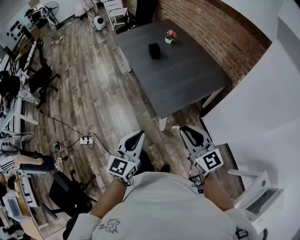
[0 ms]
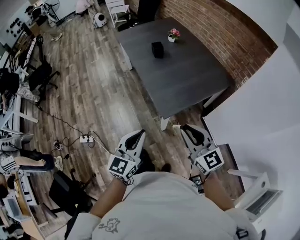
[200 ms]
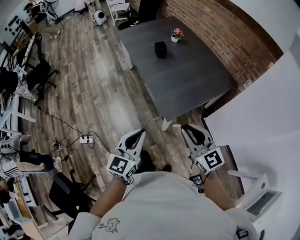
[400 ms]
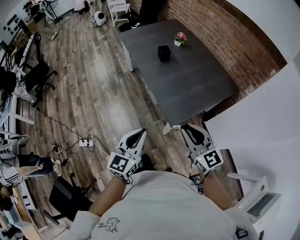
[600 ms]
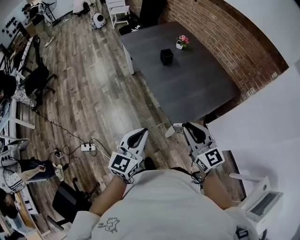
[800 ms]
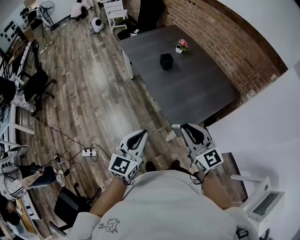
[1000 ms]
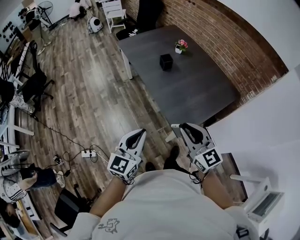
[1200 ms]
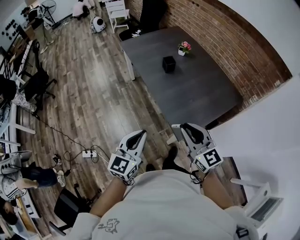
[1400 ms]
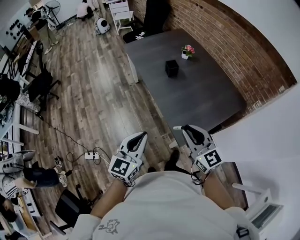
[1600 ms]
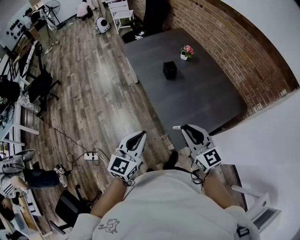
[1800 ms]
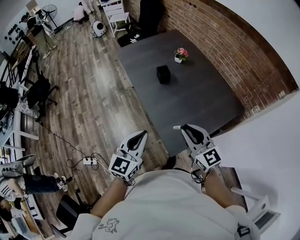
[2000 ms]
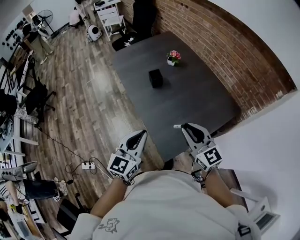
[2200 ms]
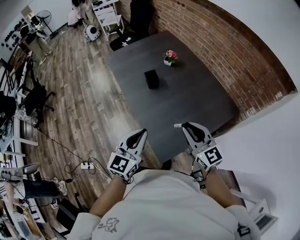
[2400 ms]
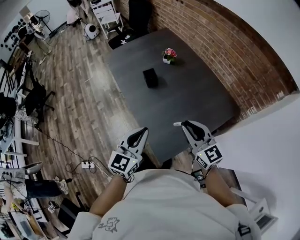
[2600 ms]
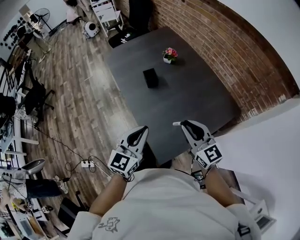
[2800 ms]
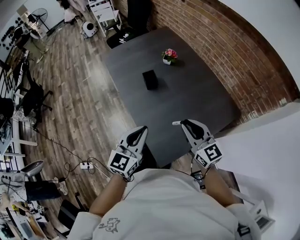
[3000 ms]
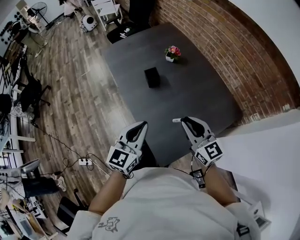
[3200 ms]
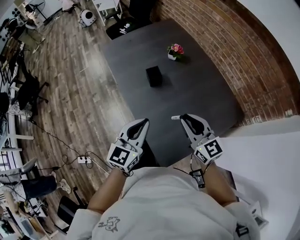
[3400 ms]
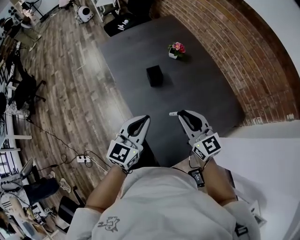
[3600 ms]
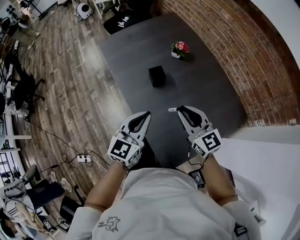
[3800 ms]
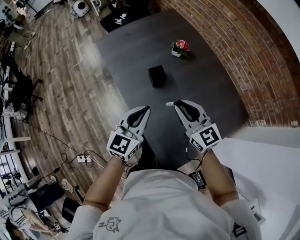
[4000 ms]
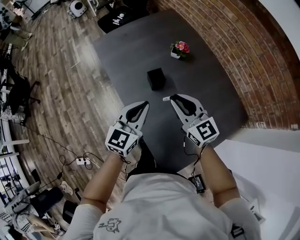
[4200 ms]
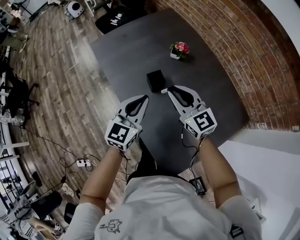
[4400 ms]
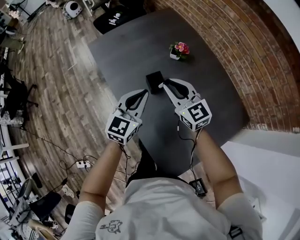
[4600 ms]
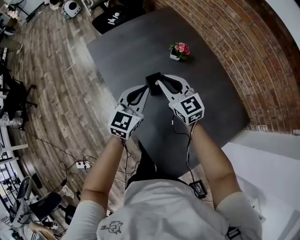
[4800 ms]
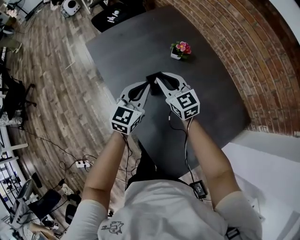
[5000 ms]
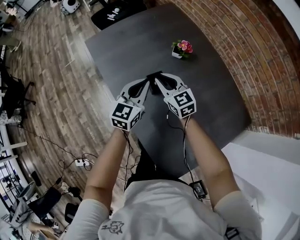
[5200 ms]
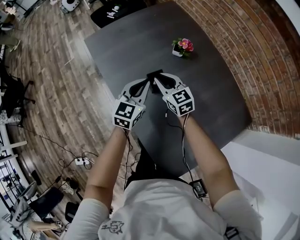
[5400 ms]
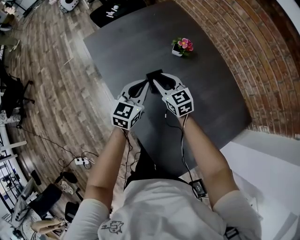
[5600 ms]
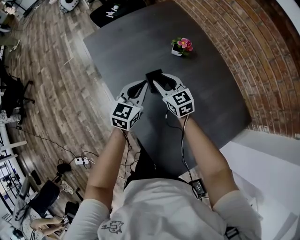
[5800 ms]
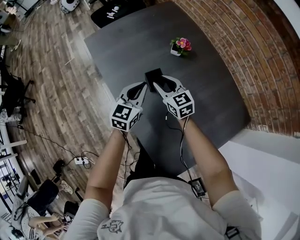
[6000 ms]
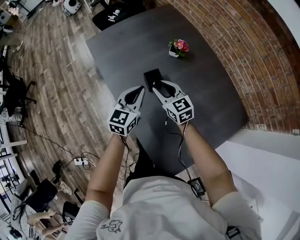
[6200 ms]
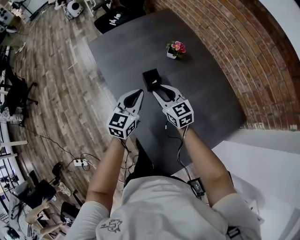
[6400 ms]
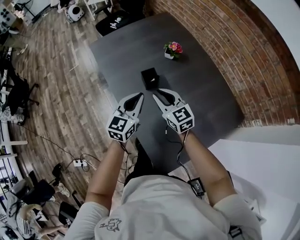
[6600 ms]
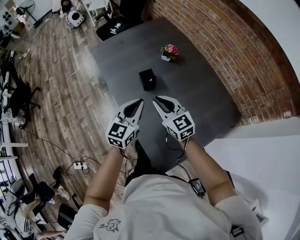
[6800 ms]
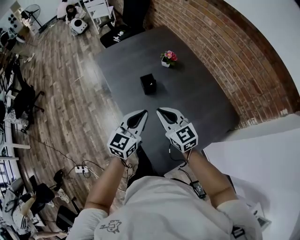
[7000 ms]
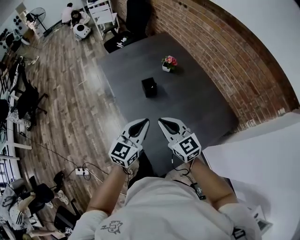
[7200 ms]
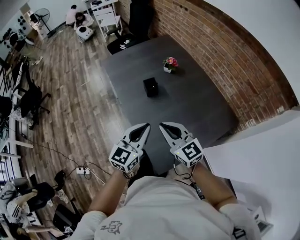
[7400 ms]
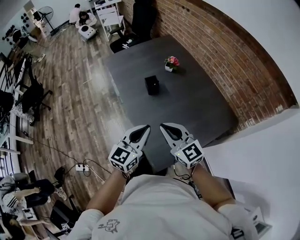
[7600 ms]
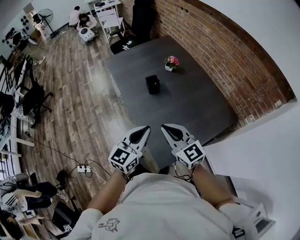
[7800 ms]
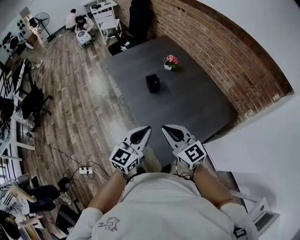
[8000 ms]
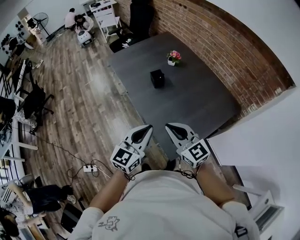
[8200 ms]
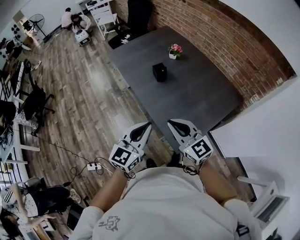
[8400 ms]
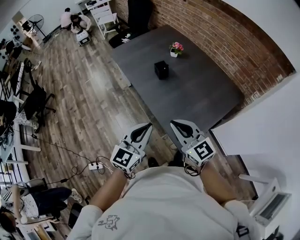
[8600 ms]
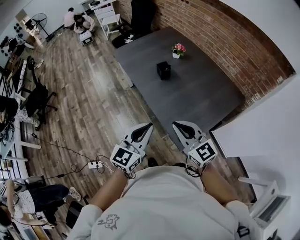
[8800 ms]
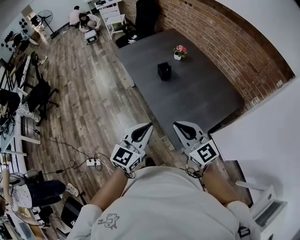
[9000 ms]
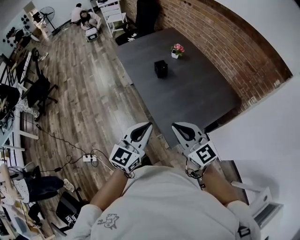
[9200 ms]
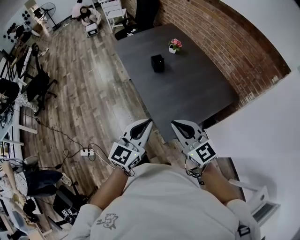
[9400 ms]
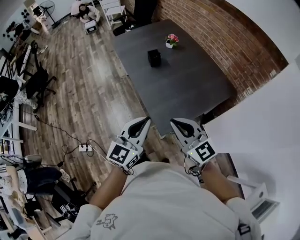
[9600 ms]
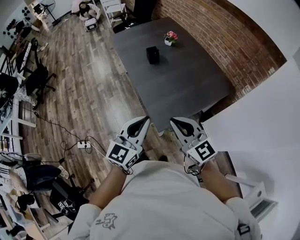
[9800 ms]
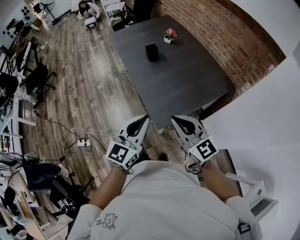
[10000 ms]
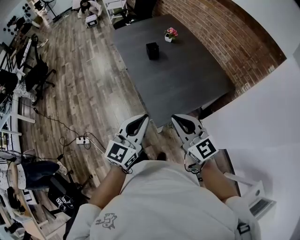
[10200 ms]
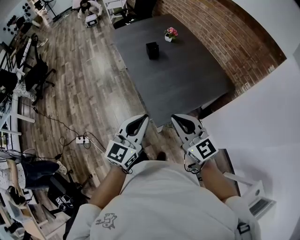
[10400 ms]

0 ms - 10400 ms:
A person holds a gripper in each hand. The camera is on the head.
0 ms - 1400 ms: The two grippers go roughly 25 cm forward and to the left.
1400 ms - 3000 ms: Both grippers travel together forward and to the right, about 30 cm.
3000 ms - 4400 ms: The left gripper heads forward, covering roughly 25 cm; the right gripper shifts some 30 cm forward and to the left.
4400 ms - 6000 ms: The grippers both shift downward and forward by some 15 cm.
6000 ms - 7400 ms: The two grippers go roughly 35 cm backward and upward. The right gripper closes its fingers.
7400 ms - 9000 ms: The left gripper shifts approximately 20 cm backward and to the left; the right gripper travels backward by about 20 cm.
9000 ms - 10400 ms: The grippers both shift backward and to the right by roughly 15 cm.

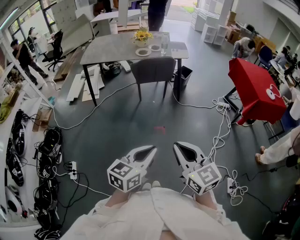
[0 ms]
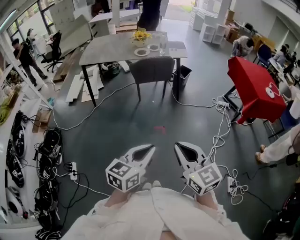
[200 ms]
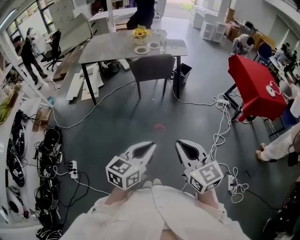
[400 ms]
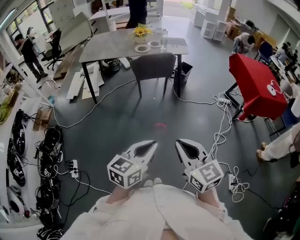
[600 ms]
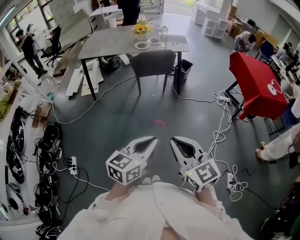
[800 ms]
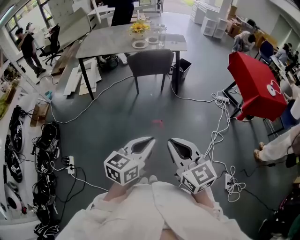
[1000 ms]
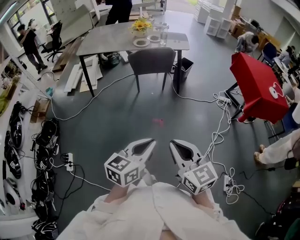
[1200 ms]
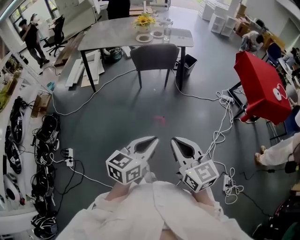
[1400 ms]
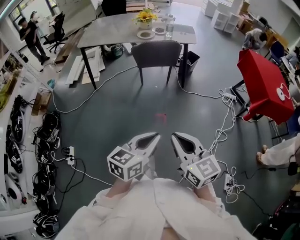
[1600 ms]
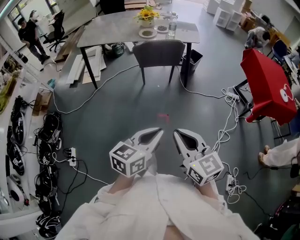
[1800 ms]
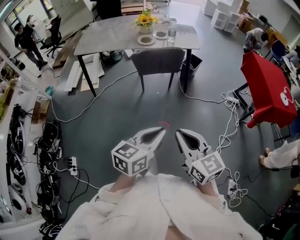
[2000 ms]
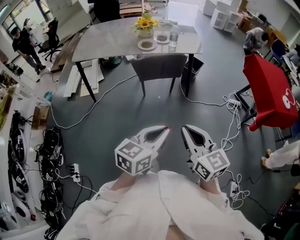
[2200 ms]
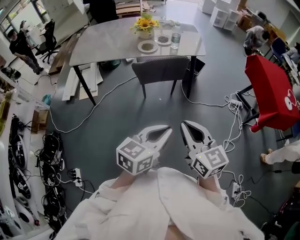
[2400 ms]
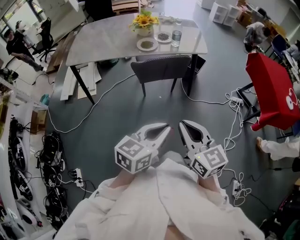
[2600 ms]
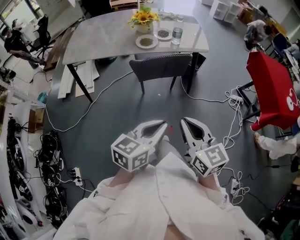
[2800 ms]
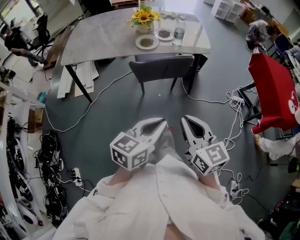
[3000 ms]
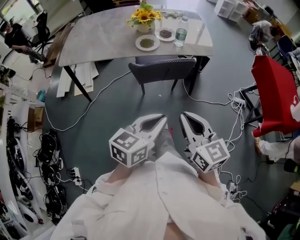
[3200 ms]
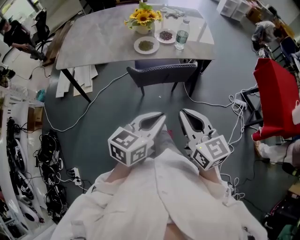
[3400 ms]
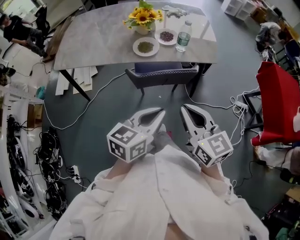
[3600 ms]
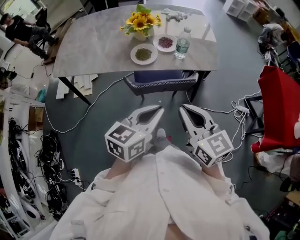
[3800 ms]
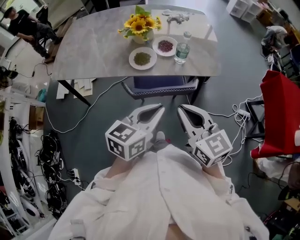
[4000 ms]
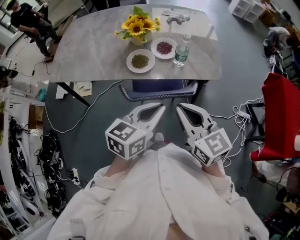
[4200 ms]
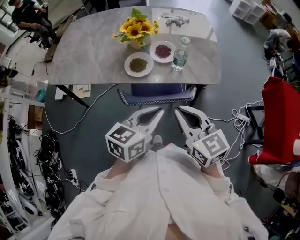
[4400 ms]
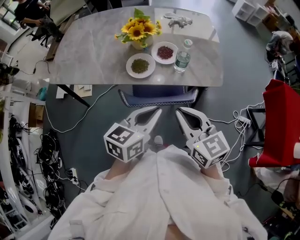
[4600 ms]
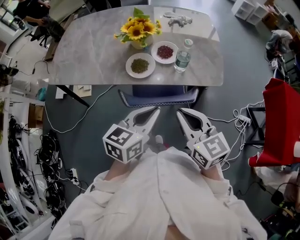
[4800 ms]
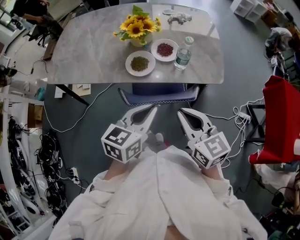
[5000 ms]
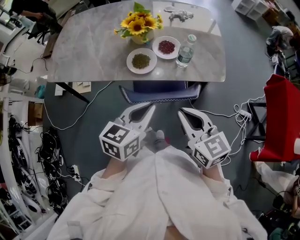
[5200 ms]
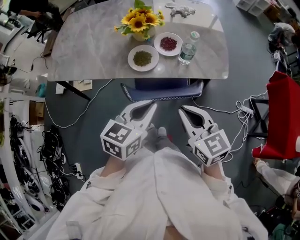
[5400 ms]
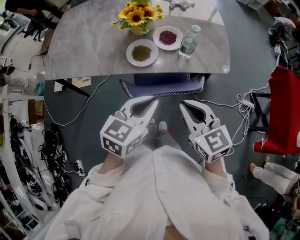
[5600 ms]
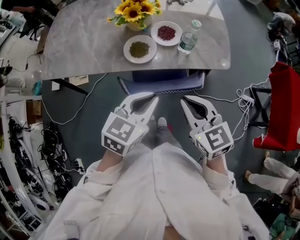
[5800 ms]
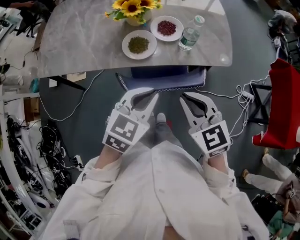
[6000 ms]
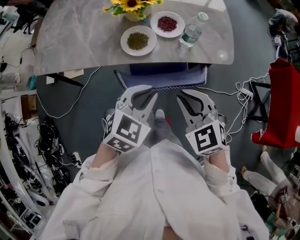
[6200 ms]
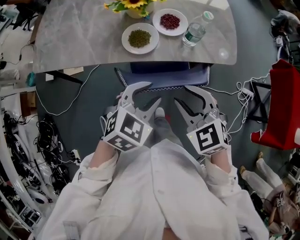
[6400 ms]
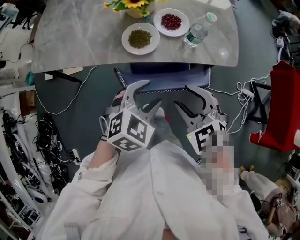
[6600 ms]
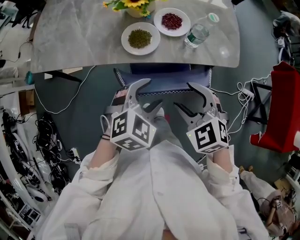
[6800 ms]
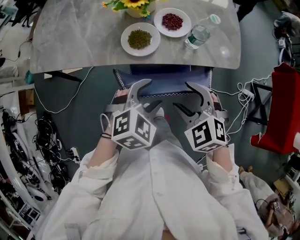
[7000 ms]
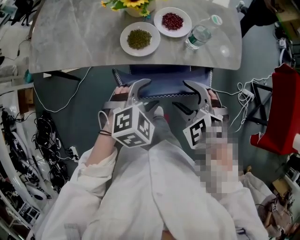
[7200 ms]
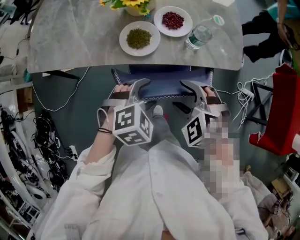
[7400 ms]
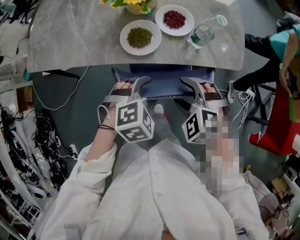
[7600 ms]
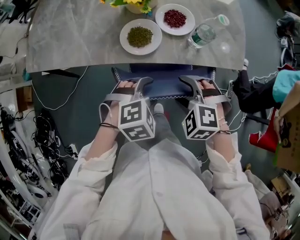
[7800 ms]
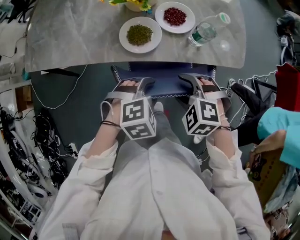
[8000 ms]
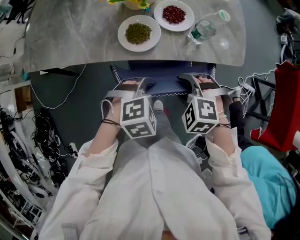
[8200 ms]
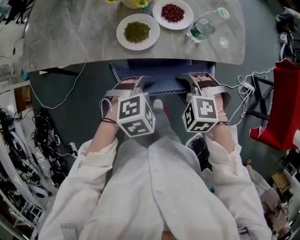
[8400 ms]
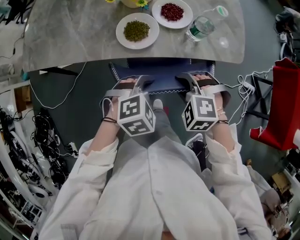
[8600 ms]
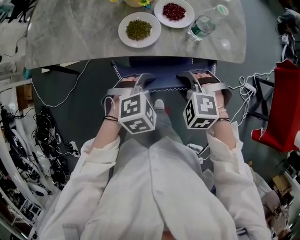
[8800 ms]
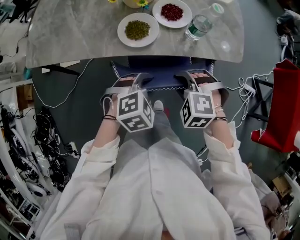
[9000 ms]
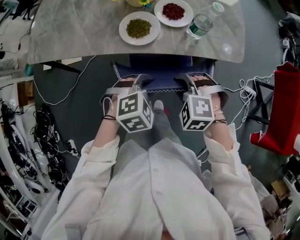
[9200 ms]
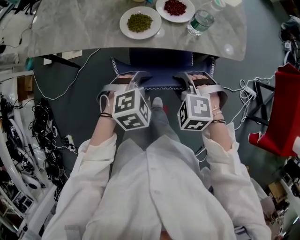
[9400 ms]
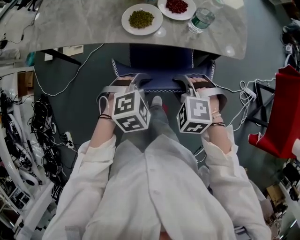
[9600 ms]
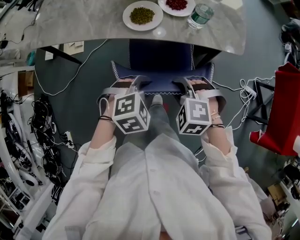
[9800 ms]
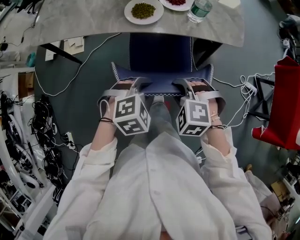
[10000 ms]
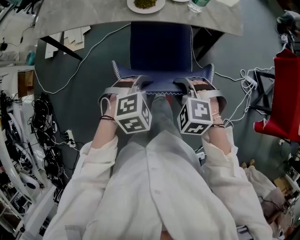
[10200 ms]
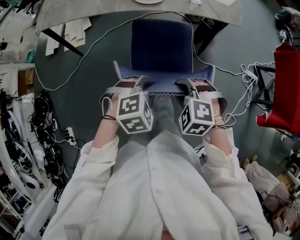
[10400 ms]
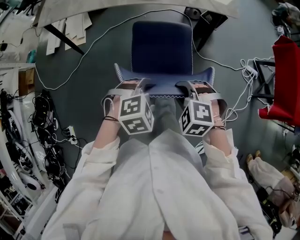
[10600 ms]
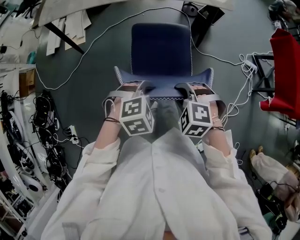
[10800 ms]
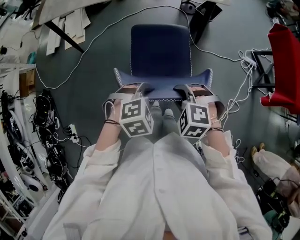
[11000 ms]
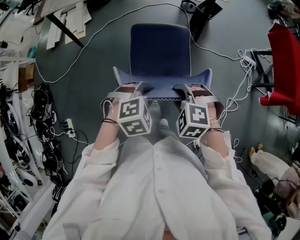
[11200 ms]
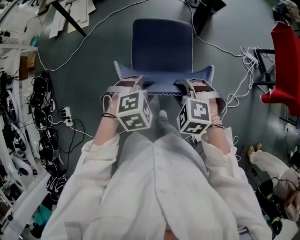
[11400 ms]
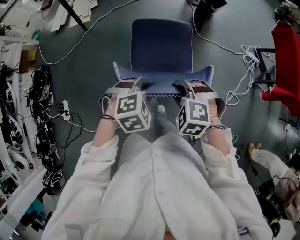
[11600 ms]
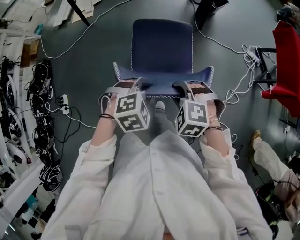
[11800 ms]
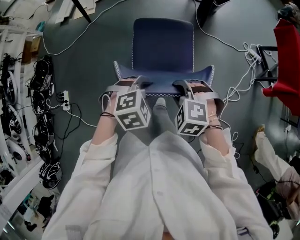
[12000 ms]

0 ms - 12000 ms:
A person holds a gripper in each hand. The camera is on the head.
0 ms - 1600 ms: The grippers both shift forward by approximately 10 cm.
1600 ms - 3000 ms: The grippers both shift forward by some 35 cm.
3000 ms - 4400 ms: Both grippers travel together forward, approximately 35 cm.
4400 ms - 6000 ms: The right gripper moves downward, some 5 cm; the left gripper is displaced to the left by roughly 5 cm, and swivels some 30 degrees.
6000 ms - 7600 ms: Both grippers move downward, roughly 10 cm. The right gripper rotates about 50 degrees, and opens its fingers; the left gripper swivels approximately 40 degrees, and opens its fingers.
7600 ms - 9000 ms: The left gripper closes. Meanwhile the right gripper closes.
9000 ms - 10400 ms: The two grippers go about 25 cm backward.
10400 ms - 12000 ms: Both grippers move backward, about 35 cm.

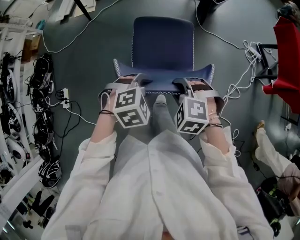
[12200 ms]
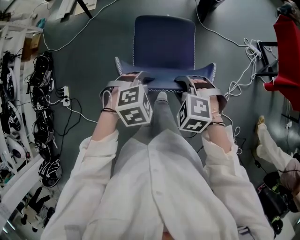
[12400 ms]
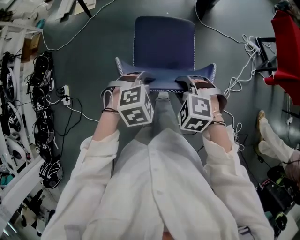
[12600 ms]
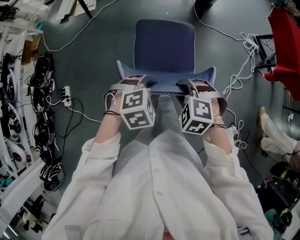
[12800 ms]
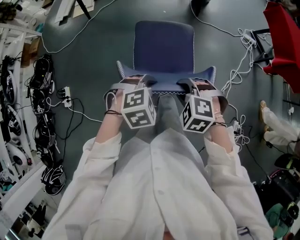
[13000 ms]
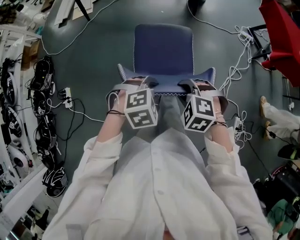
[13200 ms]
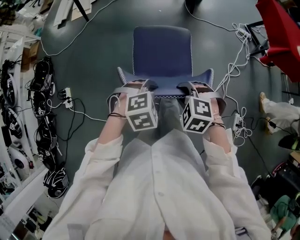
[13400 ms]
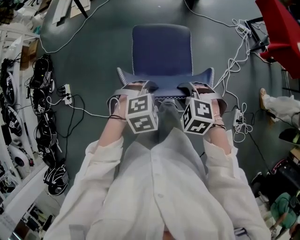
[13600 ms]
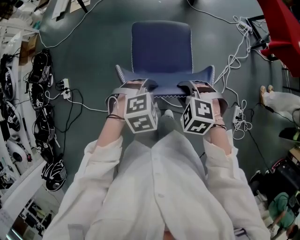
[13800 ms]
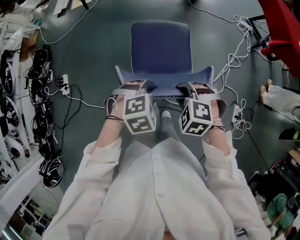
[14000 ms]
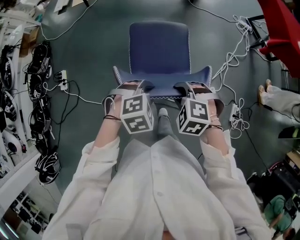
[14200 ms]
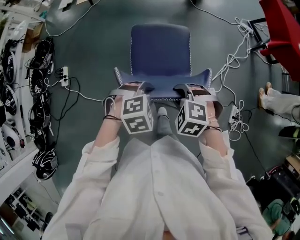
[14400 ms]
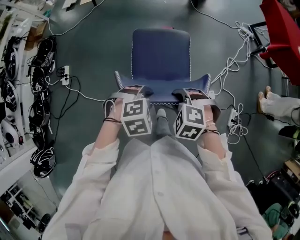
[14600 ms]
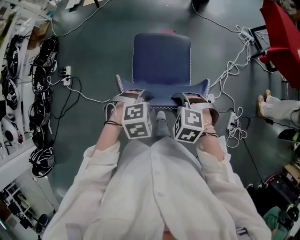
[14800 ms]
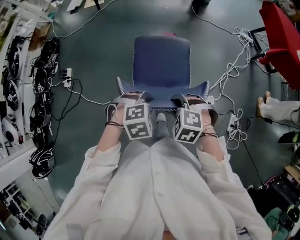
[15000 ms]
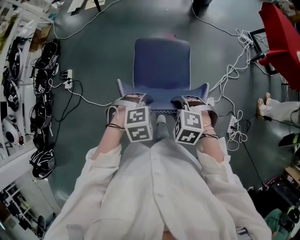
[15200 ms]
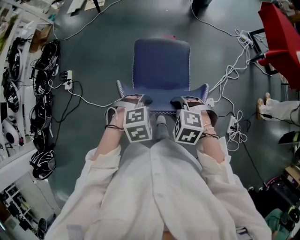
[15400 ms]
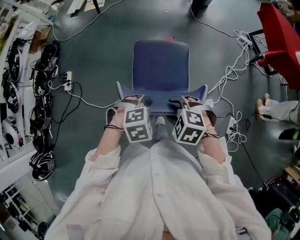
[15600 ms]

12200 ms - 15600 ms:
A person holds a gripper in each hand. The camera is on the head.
12200 ms - 13800 ms: Both grippers travel together backward, about 30 cm.
13800 ms - 15600 ms: The left gripper shifts by about 15 cm, while the right gripper changes place by some 15 cm, and opens.
